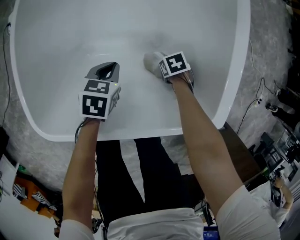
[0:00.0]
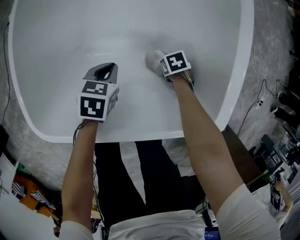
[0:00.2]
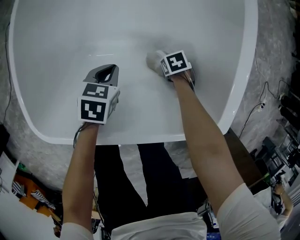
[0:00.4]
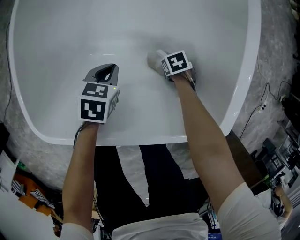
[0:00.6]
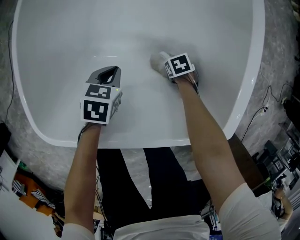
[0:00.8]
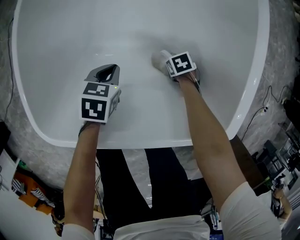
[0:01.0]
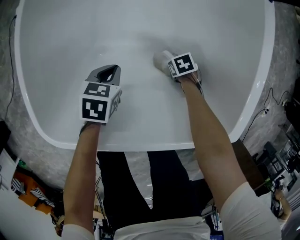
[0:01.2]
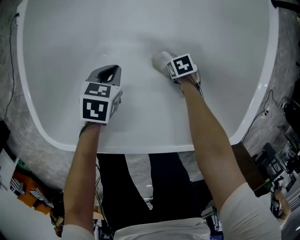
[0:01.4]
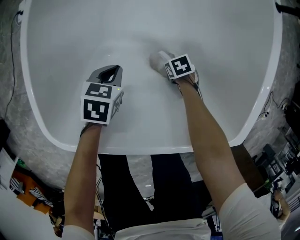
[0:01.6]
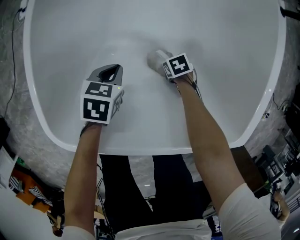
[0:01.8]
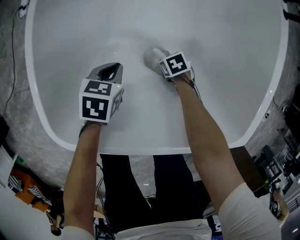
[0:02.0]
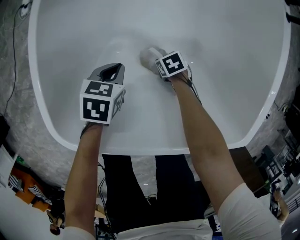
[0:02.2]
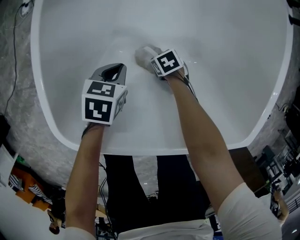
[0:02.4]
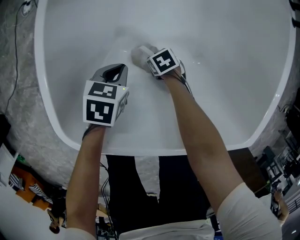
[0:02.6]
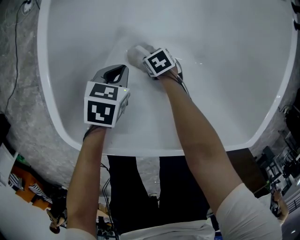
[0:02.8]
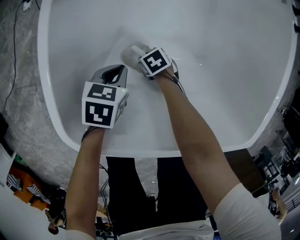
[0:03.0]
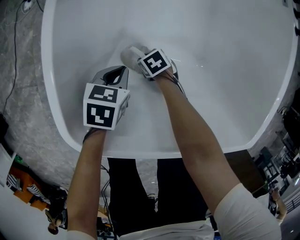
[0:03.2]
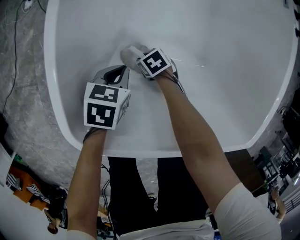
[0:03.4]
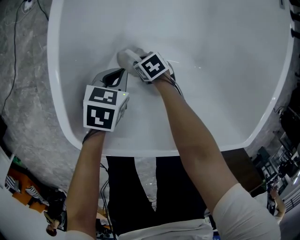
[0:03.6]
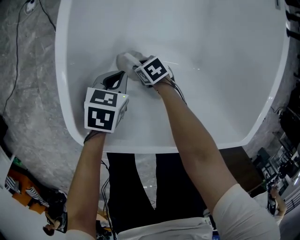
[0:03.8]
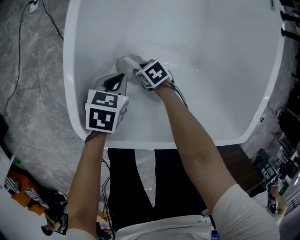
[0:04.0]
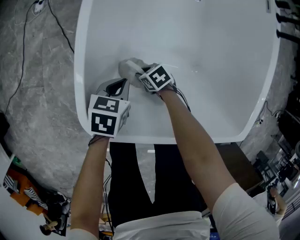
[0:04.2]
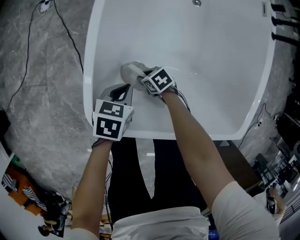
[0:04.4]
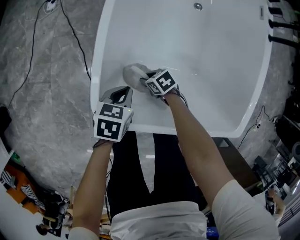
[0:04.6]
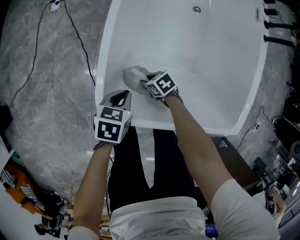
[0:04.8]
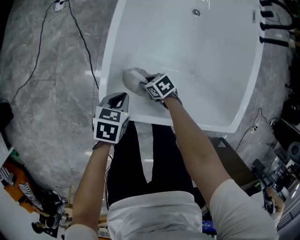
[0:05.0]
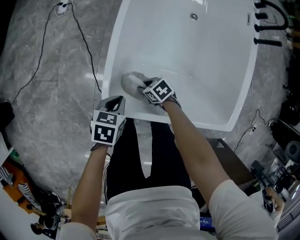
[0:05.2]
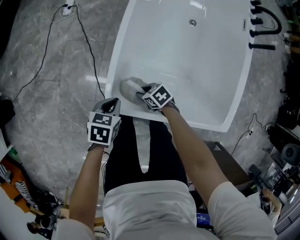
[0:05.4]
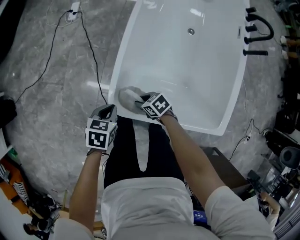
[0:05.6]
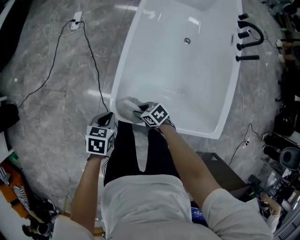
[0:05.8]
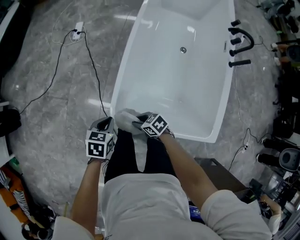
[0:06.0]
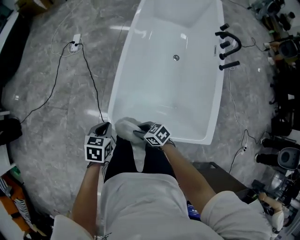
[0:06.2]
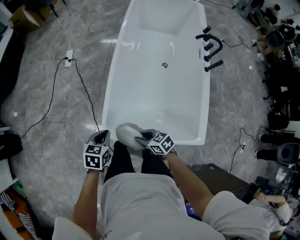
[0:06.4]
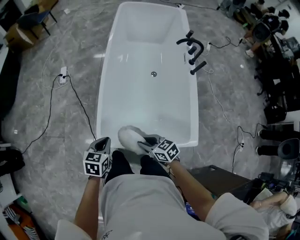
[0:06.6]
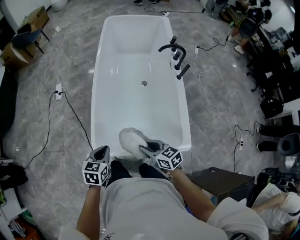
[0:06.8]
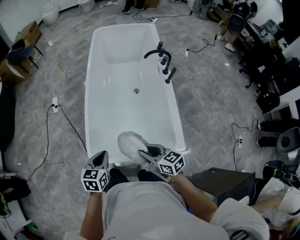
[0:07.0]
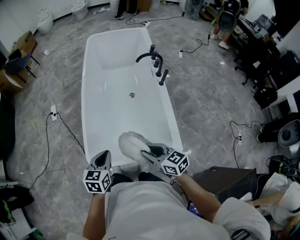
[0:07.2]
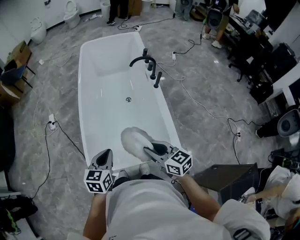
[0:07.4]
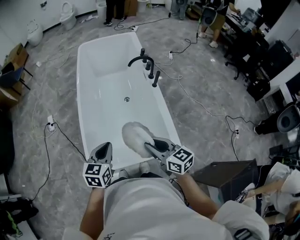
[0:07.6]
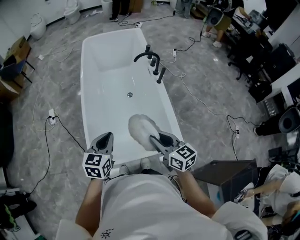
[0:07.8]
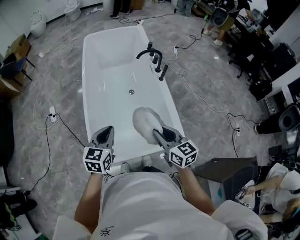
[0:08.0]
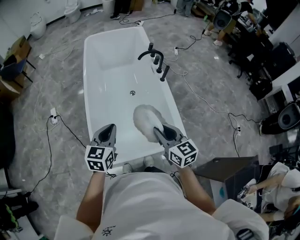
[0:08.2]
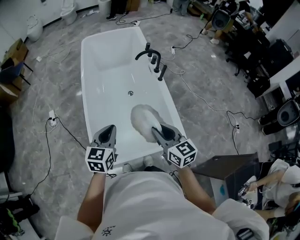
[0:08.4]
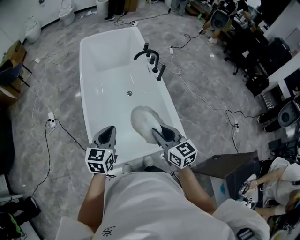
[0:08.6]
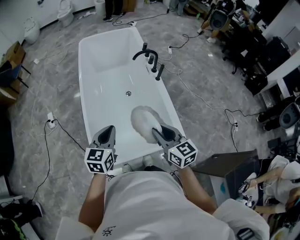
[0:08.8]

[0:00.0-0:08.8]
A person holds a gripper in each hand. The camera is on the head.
0:00.0 to 0:01.4: The left gripper ends up about 10 cm from where it was. The right gripper is displaced downward by roughly 5 cm.
0:01.4 to 0:03.0: The left gripper changes place by roughly 10 cm; the right gripper moves approximately 25 cm.
0:03.0 to 0:04.4: Both grippers travel together upward, approximately 10 cm.
0:04.4 to 0:05.8: Both grippers travel together upward, some 20 cm.
0:05.8 to 0:07.4: The left gripper shifts about 25 cm upward, and rotates about 30 degrees; the right gripper heads upward, covering about 40 cm, and turns by about 60 degrees.
0:07.4 to 0:08.8: The left gripper travels forward by some 5 cm, while the right gripper shifts by about 5 cm, and changes its angle by some 20 degrees.

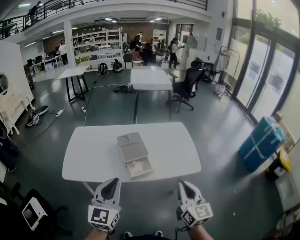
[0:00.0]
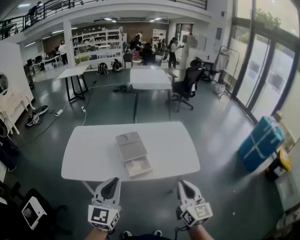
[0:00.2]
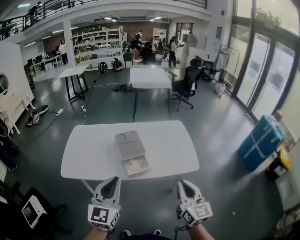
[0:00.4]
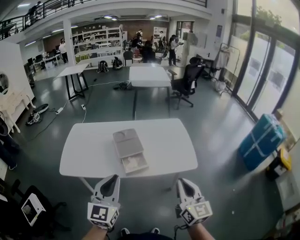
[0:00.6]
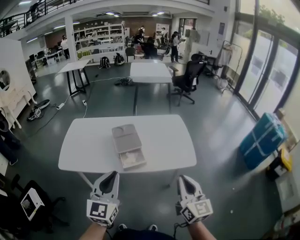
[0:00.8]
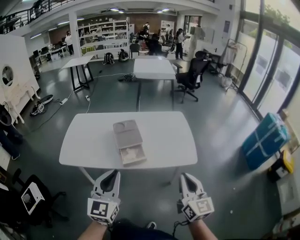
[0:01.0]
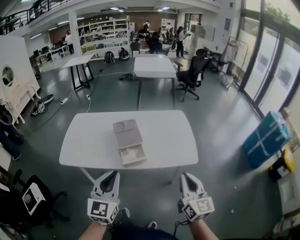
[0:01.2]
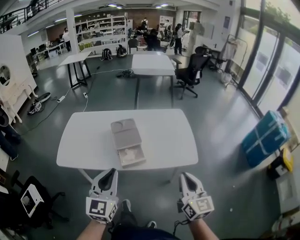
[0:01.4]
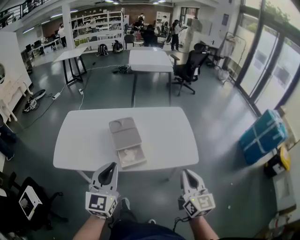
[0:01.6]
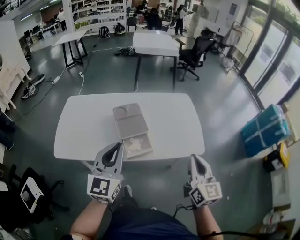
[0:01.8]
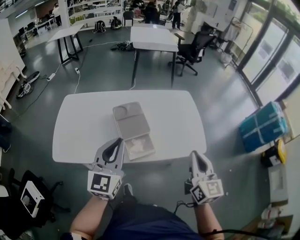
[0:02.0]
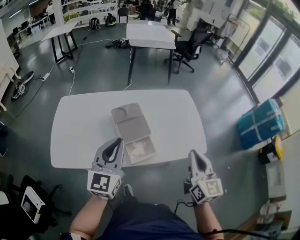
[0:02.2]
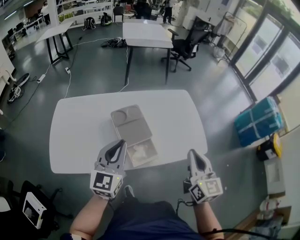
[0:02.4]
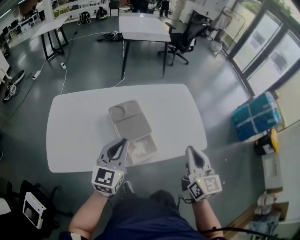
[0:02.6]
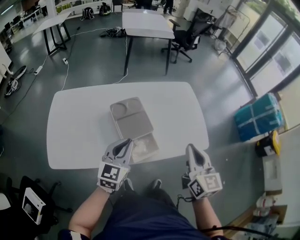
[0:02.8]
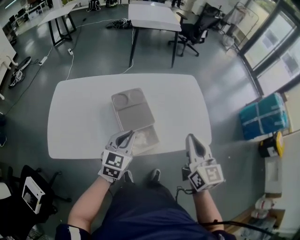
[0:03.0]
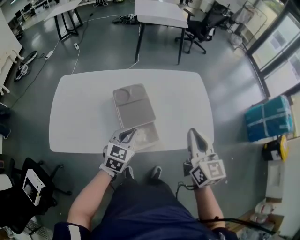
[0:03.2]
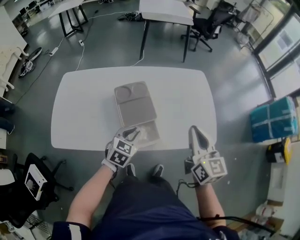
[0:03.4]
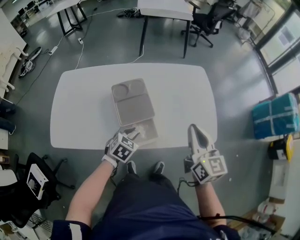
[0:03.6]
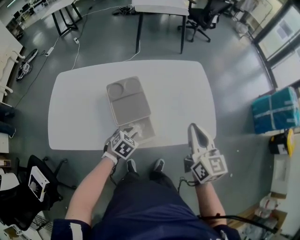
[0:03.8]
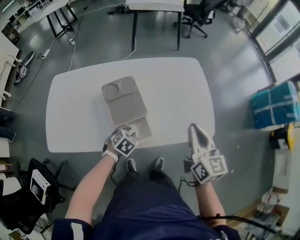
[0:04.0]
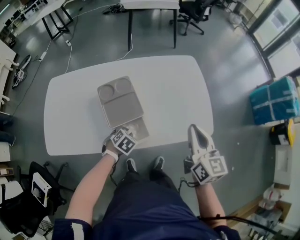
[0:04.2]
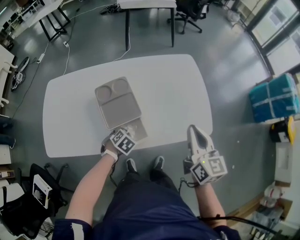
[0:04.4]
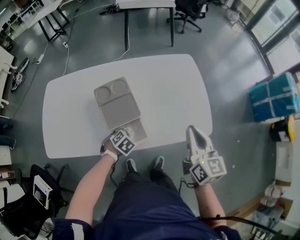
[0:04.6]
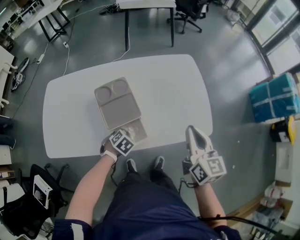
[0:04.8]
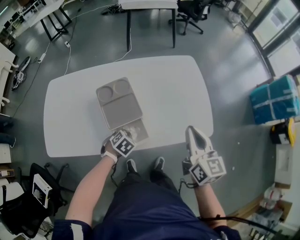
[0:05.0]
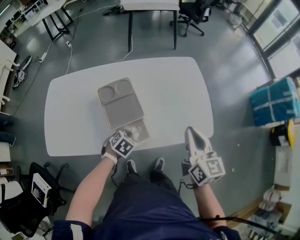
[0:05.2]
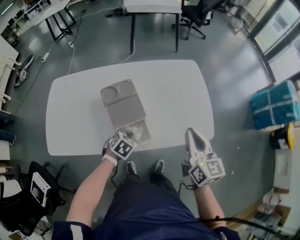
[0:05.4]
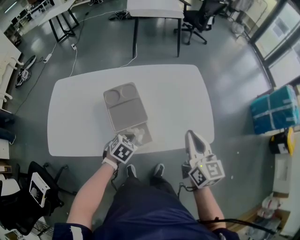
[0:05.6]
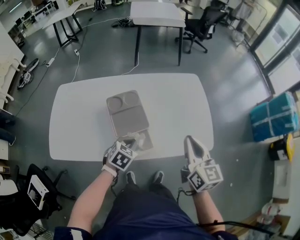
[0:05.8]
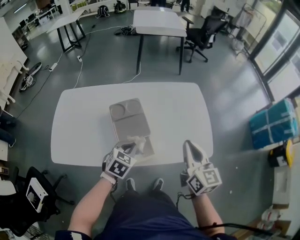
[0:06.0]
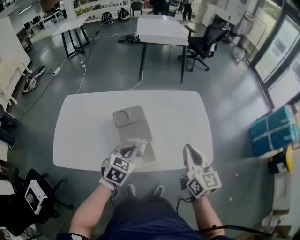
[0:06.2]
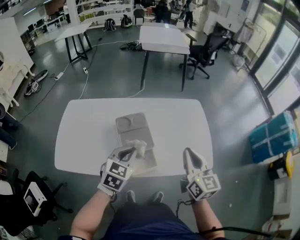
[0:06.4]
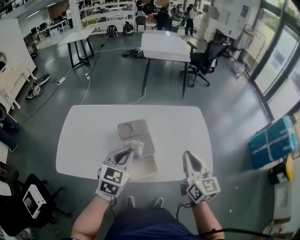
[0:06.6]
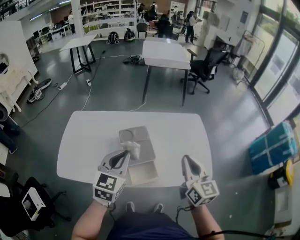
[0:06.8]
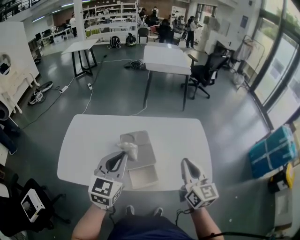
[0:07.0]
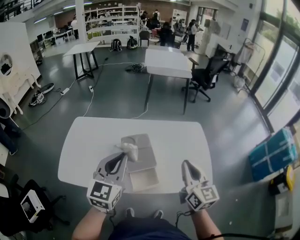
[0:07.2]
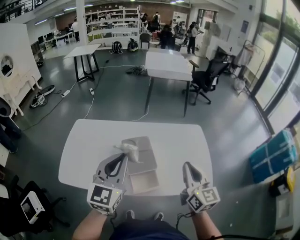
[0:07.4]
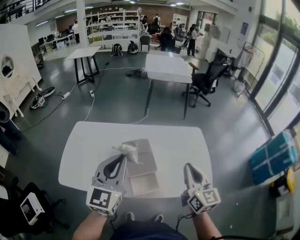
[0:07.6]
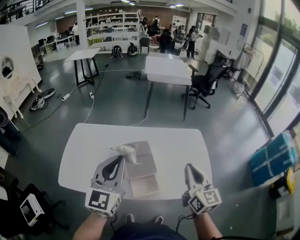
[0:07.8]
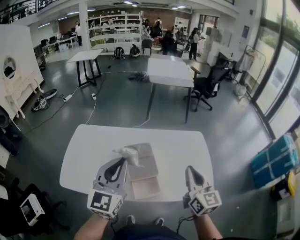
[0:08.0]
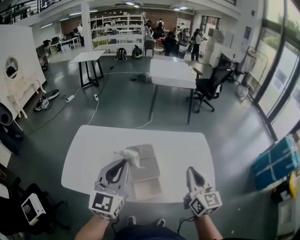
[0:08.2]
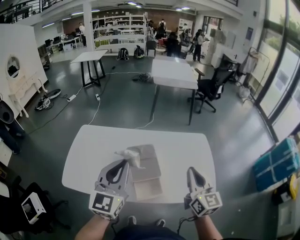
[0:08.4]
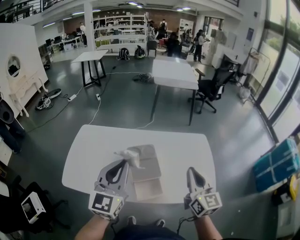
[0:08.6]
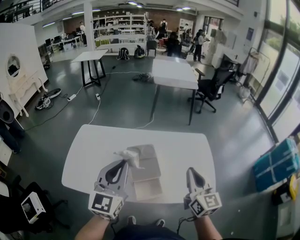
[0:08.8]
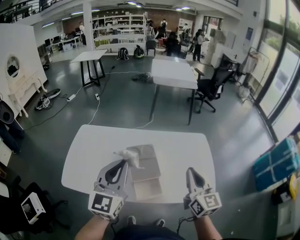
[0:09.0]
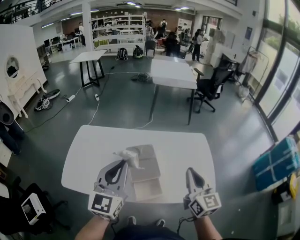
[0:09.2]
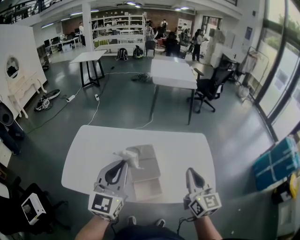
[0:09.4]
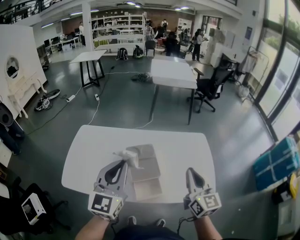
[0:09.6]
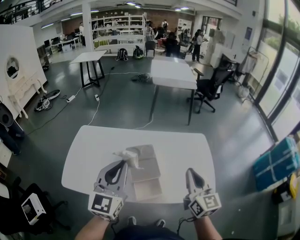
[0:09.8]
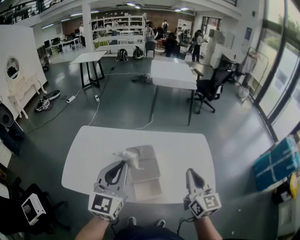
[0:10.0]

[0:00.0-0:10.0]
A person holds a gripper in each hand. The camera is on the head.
0:00.0 to 0:01.4: Both grippers travel together to the right, approximately 5 cm.
0:01.4 to 0:02.8: The right gripper travels forward and to the left by about 20 cm; the left gripper shifts approximately 25 cm forward and downward, and swivels roughly 20 degrees.
0:02.8 to 0:04.2: The right gripper goes some 10 cm to the right, forward and downward. The left gripper travels downward by about 25 cm, and points its fingers approximately 60 degrees further downward.
0:04.2 to 0:05.8: The left gripper goes roughly 10 cm upward.
0:05.8 to 0:07.2: The left gripper is displaced upward by roughly 30 cm, and tilts its fingers about 50 degrees upward, while the right gripper is displaced upward and to the left by some 10 cm.
0:07.2 to 0:08.6: There are only small adjustments of the grippers.
0:08.6 to 0:10.0: Both grippers stay about where they are.

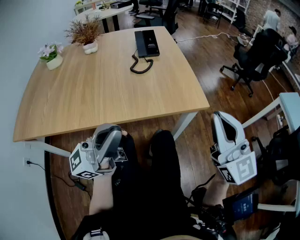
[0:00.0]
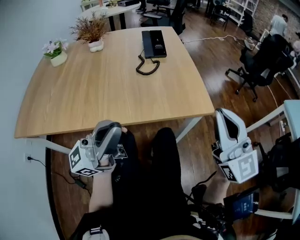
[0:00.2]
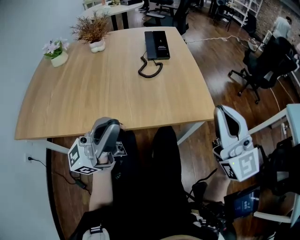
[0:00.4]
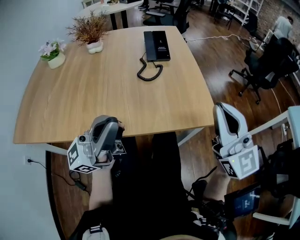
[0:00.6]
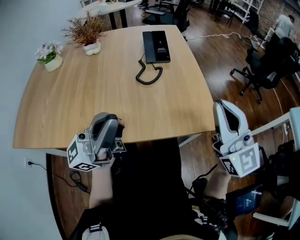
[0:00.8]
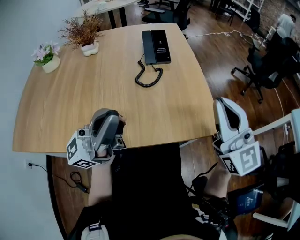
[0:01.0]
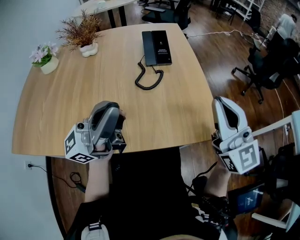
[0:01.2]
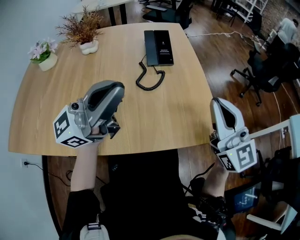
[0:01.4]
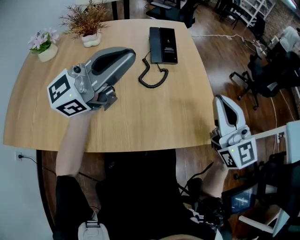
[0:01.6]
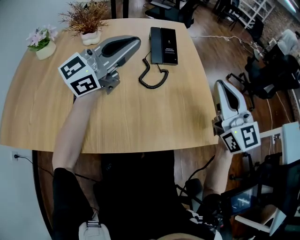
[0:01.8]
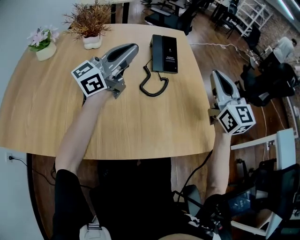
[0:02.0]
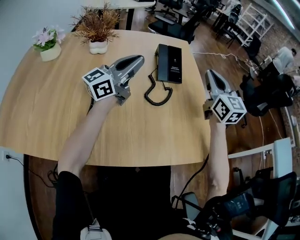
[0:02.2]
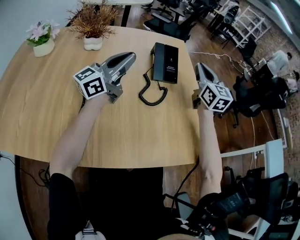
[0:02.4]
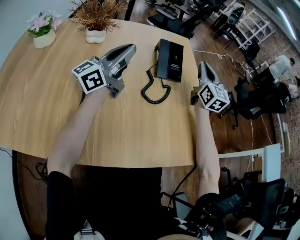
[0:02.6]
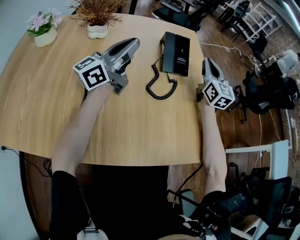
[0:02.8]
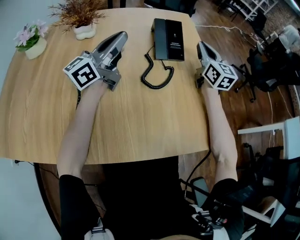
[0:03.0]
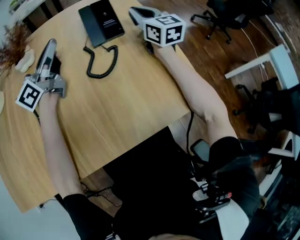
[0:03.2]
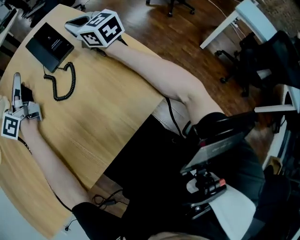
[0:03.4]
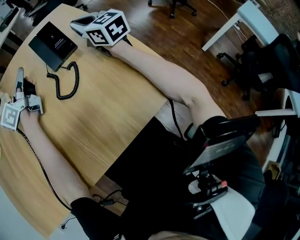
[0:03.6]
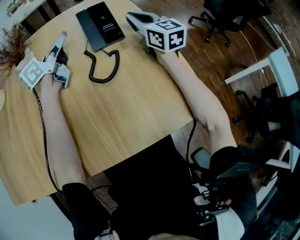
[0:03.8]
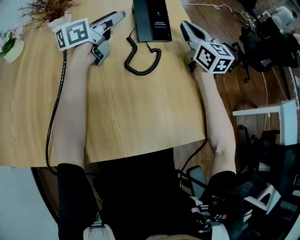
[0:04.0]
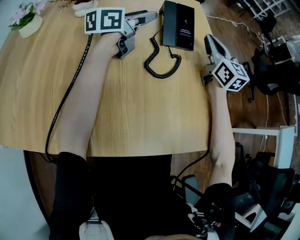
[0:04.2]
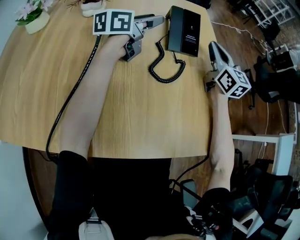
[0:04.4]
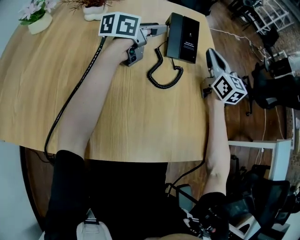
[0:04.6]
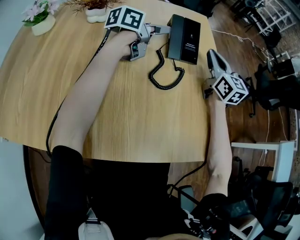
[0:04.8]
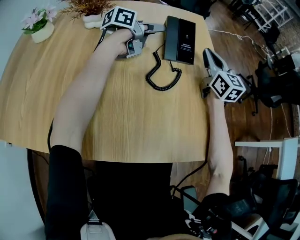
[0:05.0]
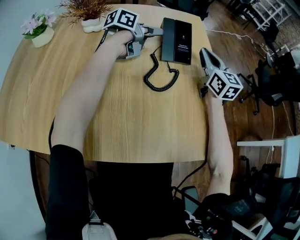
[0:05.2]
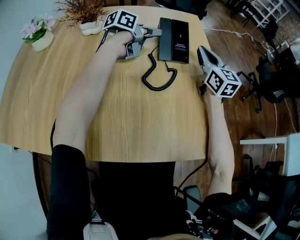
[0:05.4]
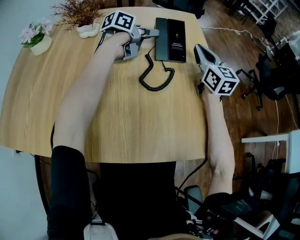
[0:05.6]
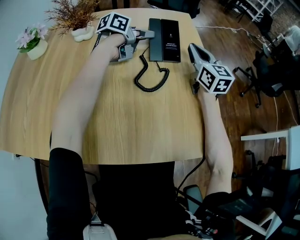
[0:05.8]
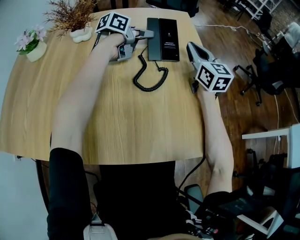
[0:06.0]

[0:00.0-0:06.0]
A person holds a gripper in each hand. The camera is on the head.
0:00.0 to 0:01.6: The left gripper moves forward, some 30 cm, and changes its angle by about 20 degrees. Meanwhile the right gripper goes roughly 20 cm forward and to the left.
0:01.6 to 0:03.0: The left gripper is displaced forward, to the left and downward by approximately 25 cm, and turns by roughly 30 degrees. Meanwhile the right gripper is displaced forward by some 30 cm, and swivels approximately 20 degrees.
0:03.0 to 0:04.4: The left gripper shifts approximately 10 cm forward and downward, rotates approximately 30 degrees, and opens.
0:04.4 to 0:06.0: The left gripper ends up roughly 10 cm from where it was, and turns by roughly 30 degrees.
